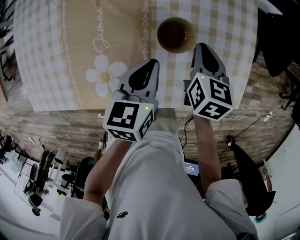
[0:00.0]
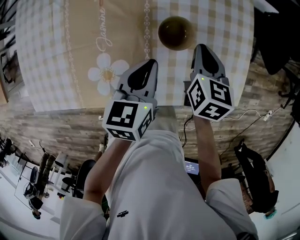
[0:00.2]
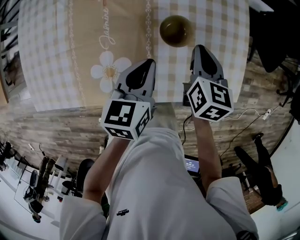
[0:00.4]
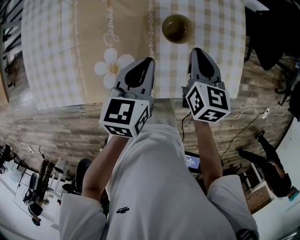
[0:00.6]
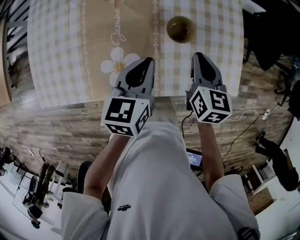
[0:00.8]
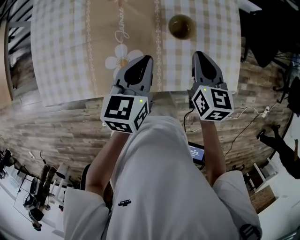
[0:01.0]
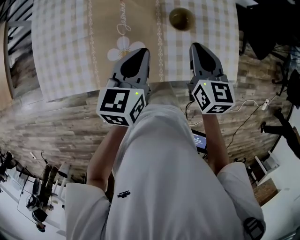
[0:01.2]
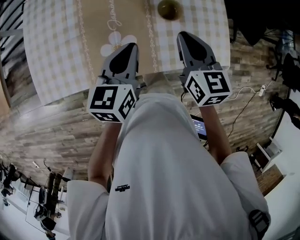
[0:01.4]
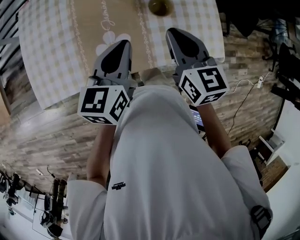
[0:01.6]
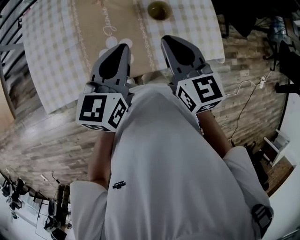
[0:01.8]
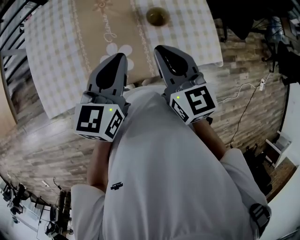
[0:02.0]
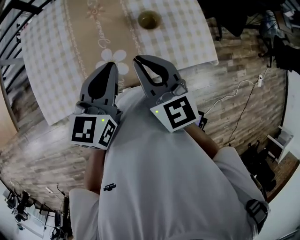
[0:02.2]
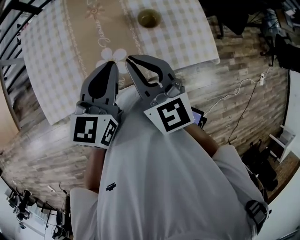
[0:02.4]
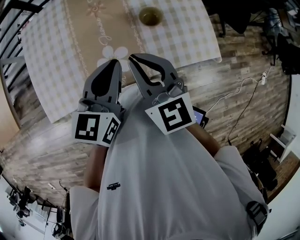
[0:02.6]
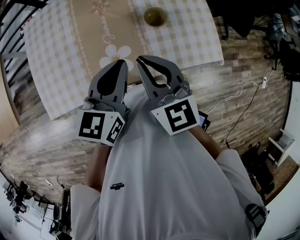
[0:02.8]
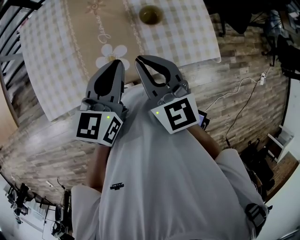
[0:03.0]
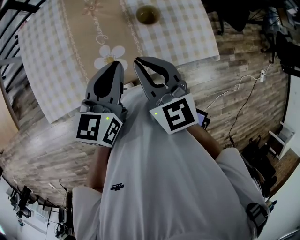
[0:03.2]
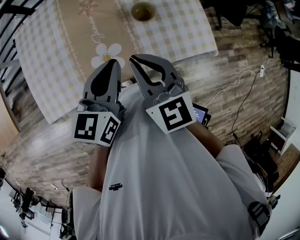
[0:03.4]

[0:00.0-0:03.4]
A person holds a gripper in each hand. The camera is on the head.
0:00.0 to 0:01.6: Both grippers travel together upward, backward and to the left, some 30 cm. The right gripper swivels approximately 20 degrees.
0:01.6 to 0:03.4: The right gripper travels backward and to the left by some 10 cm, while the left gripper changes place by some 5 cm.

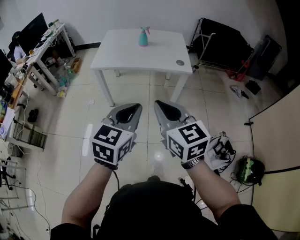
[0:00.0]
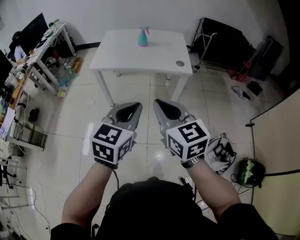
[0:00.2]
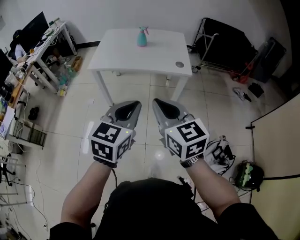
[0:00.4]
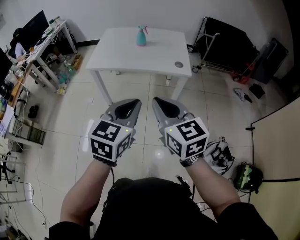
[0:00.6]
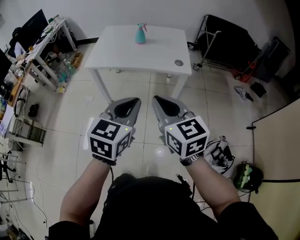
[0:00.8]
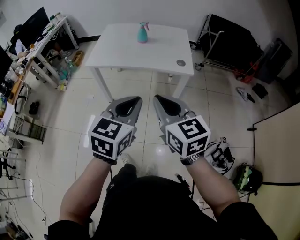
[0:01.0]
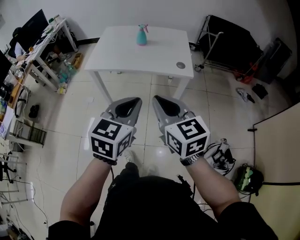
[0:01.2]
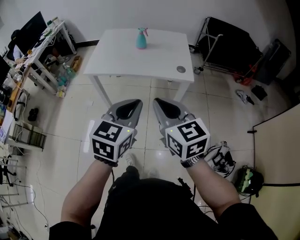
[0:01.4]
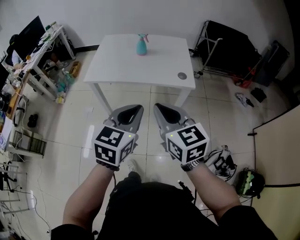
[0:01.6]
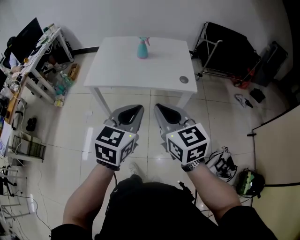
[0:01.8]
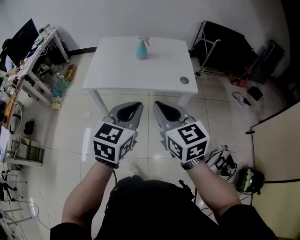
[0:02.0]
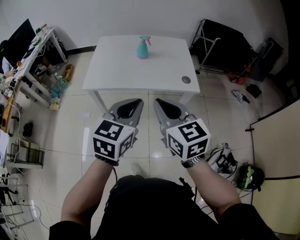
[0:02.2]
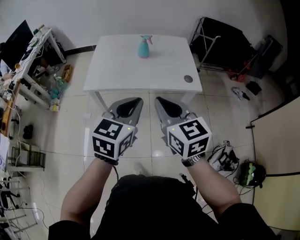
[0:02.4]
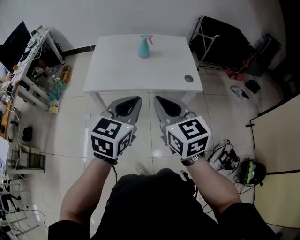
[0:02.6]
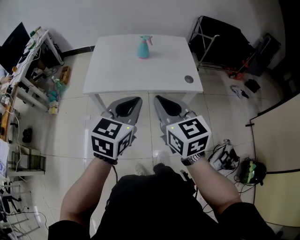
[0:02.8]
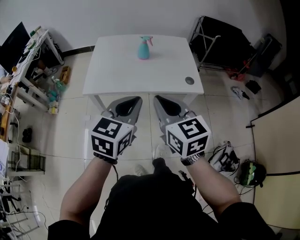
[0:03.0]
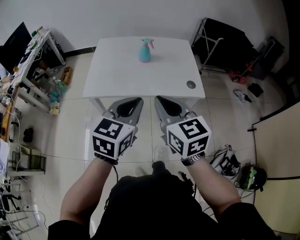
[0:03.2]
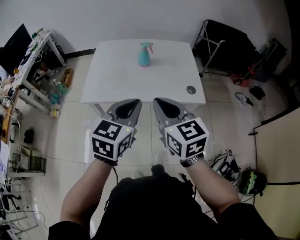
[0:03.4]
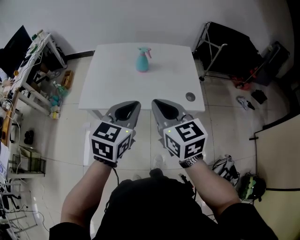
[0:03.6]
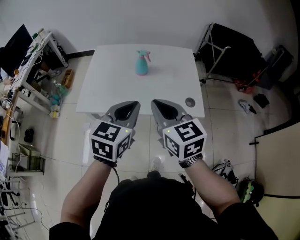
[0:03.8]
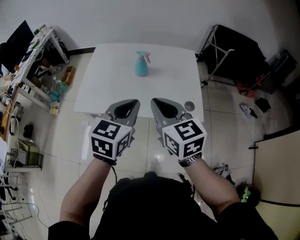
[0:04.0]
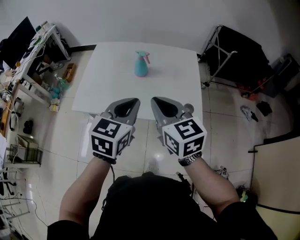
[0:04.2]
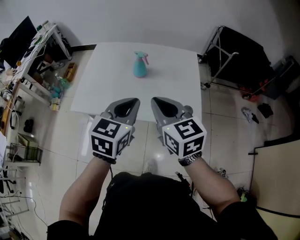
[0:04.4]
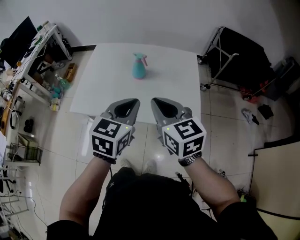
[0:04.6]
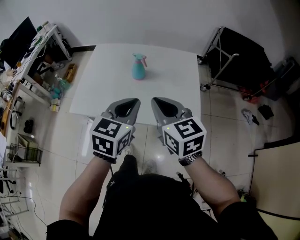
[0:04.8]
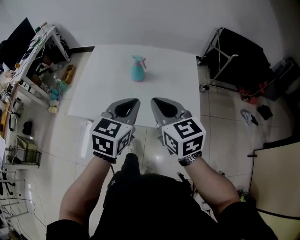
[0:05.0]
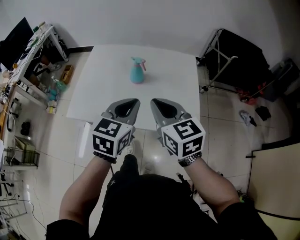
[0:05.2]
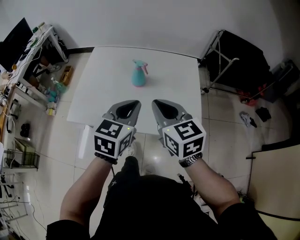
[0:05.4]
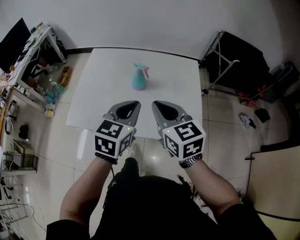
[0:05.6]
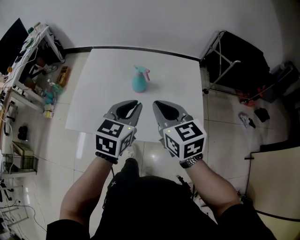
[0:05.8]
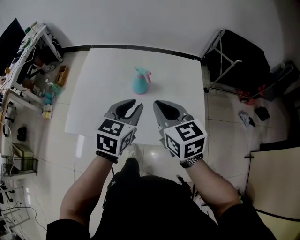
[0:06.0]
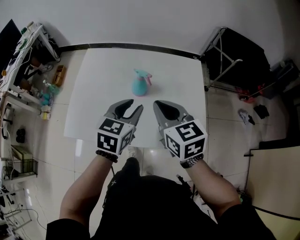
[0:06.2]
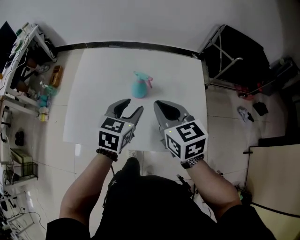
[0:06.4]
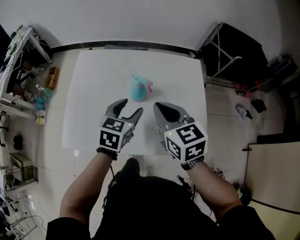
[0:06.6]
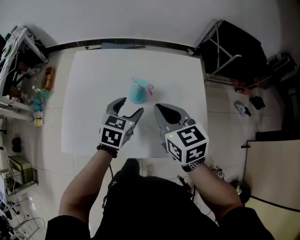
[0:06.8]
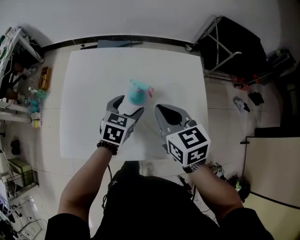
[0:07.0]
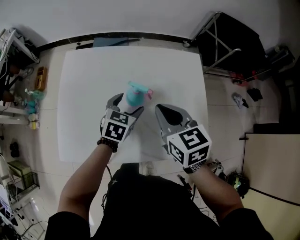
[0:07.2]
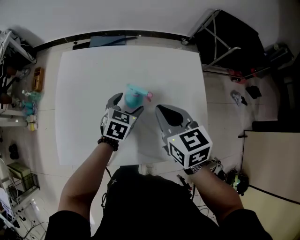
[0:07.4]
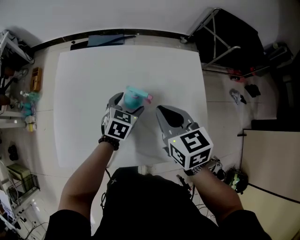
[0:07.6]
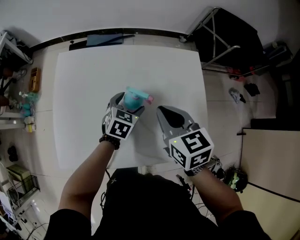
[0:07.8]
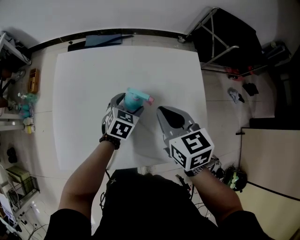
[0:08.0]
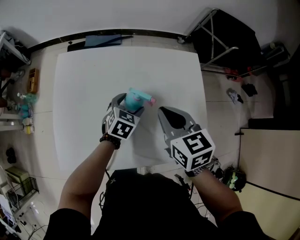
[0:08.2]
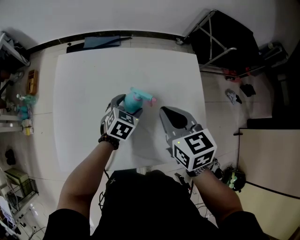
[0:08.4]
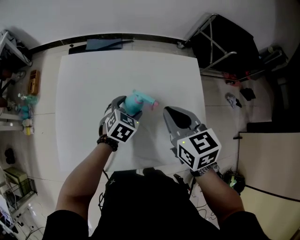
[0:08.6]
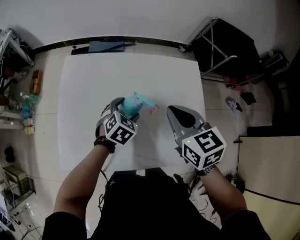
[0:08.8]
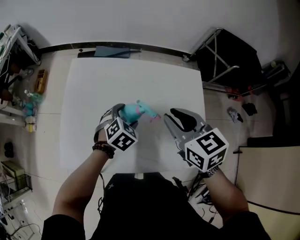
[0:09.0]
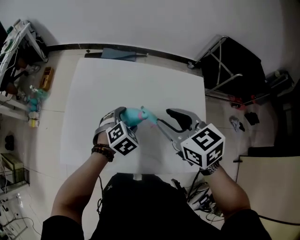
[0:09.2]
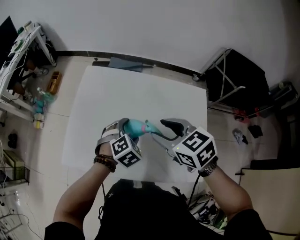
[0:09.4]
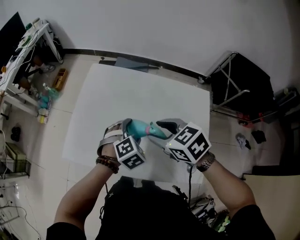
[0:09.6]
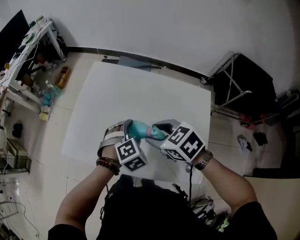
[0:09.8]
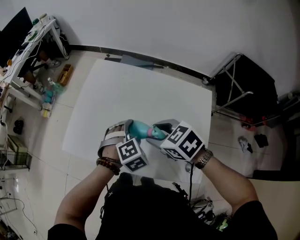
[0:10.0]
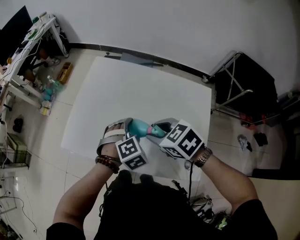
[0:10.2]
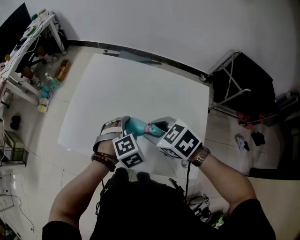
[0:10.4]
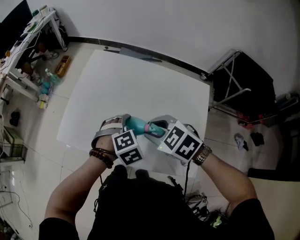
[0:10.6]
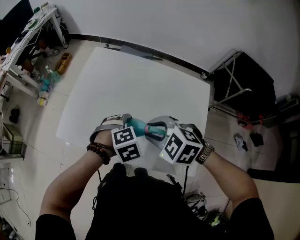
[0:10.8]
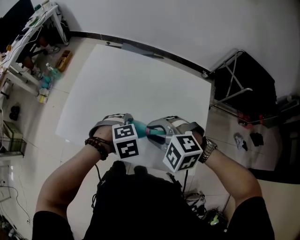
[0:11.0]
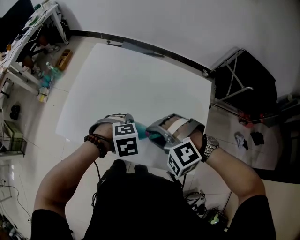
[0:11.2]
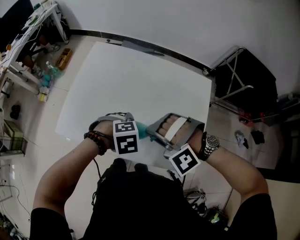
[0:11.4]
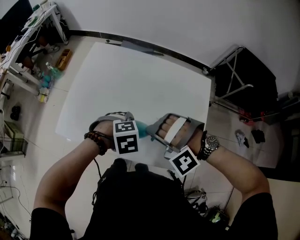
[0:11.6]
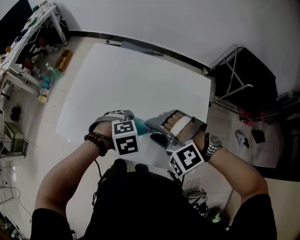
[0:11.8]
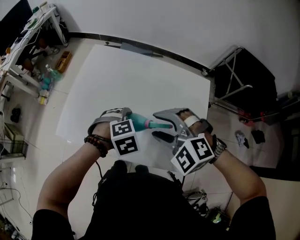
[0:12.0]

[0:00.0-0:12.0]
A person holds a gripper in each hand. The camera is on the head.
0:00.0 to 0:01.6: Both grippers move forward, roughly 15 cm.
0:01.6 to 0:03.0: Both grippers move forward and to the left, about 15 cm.
0:03.0 to 0:04.4: The grippers both shift forward and to the right by some 20 cm.
0:04.4 to 0:06.0: The two grippers go approximately 10 cm forward.
0:06.0 to 0:07.6: The right gripper shifts approximately 10 cm forward and downward; the left gripper goes some 25 cm downward and forward, and opens.
0:07.6 to 0:09.0: The left gripper rotates about 20 degrees. Meanwhile the right gripper heads upward, covering about 5 cm.
0:09.0 to 0:10.4: The left gripper shifts by some 10 cm, and changes its angle by approximately 20 degrees. Meanwhile the right gripper moves downward, approximately 5 cm, and rotates roughly 40 degrees.
0:10.4 to 0:12.0: The right gripper ends up about 5 cm from where it was, rotates around the line of its fingers by some 50 degrees, counterclockwise from behind, and opens up.

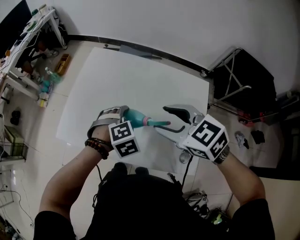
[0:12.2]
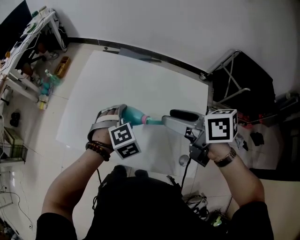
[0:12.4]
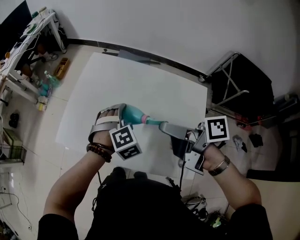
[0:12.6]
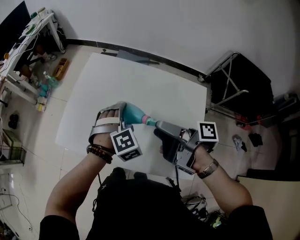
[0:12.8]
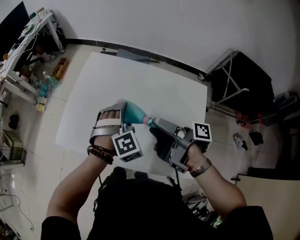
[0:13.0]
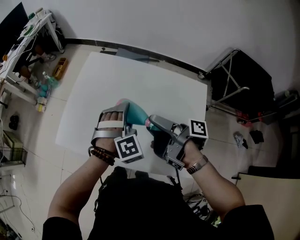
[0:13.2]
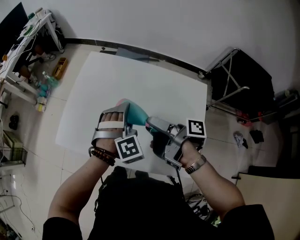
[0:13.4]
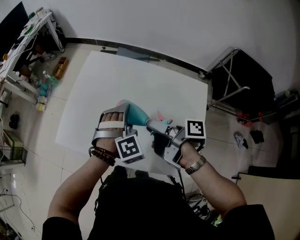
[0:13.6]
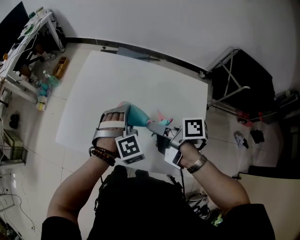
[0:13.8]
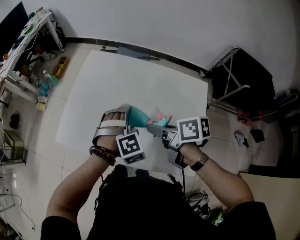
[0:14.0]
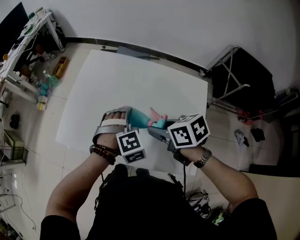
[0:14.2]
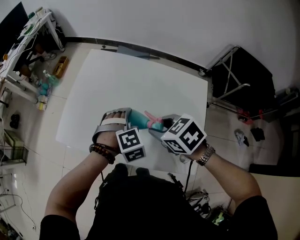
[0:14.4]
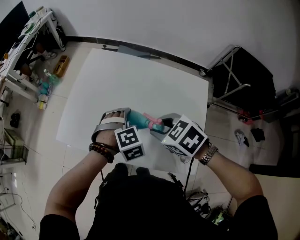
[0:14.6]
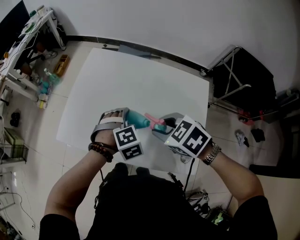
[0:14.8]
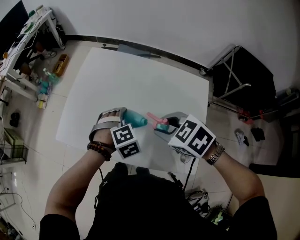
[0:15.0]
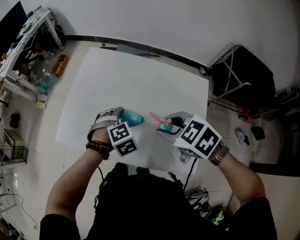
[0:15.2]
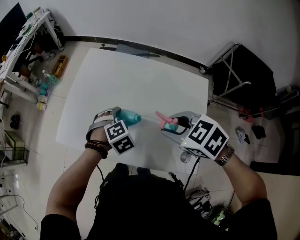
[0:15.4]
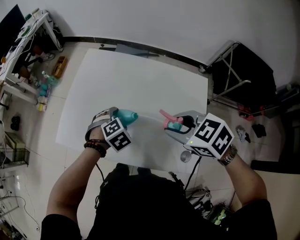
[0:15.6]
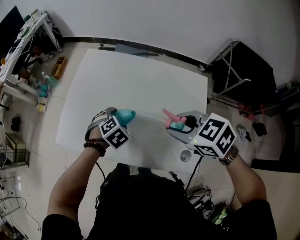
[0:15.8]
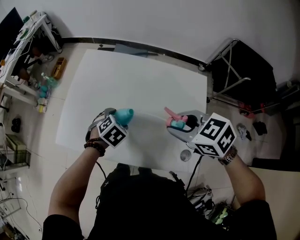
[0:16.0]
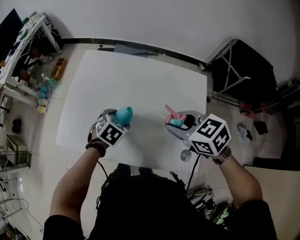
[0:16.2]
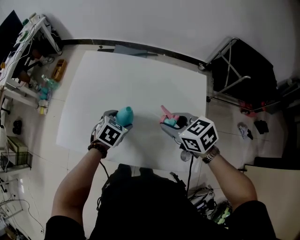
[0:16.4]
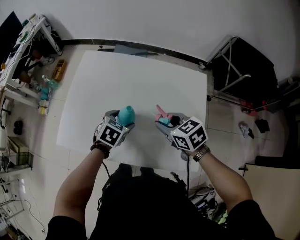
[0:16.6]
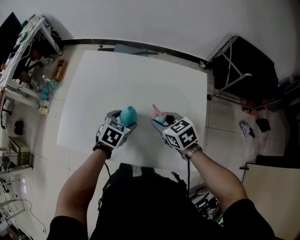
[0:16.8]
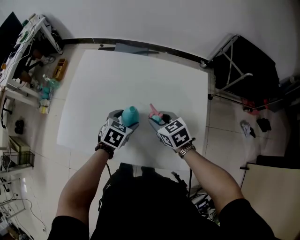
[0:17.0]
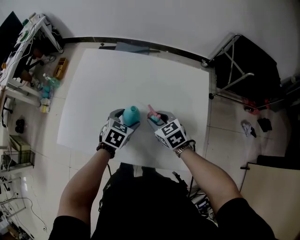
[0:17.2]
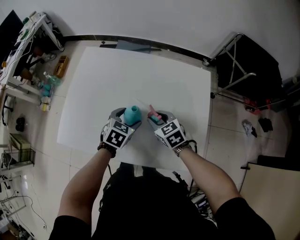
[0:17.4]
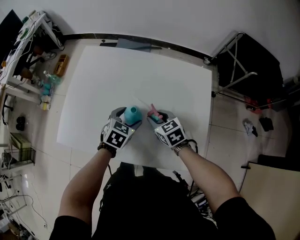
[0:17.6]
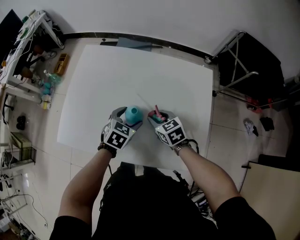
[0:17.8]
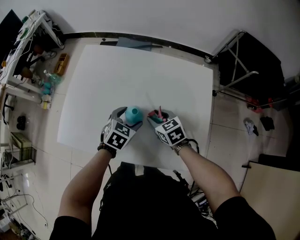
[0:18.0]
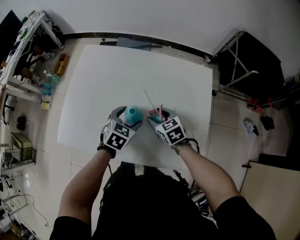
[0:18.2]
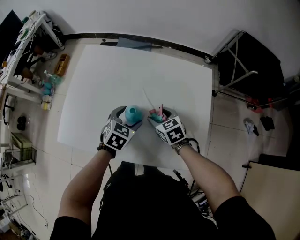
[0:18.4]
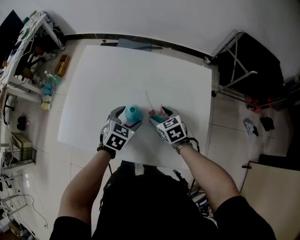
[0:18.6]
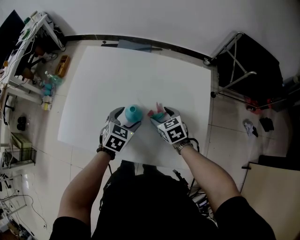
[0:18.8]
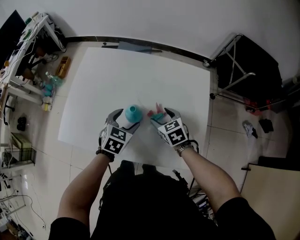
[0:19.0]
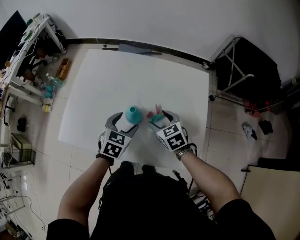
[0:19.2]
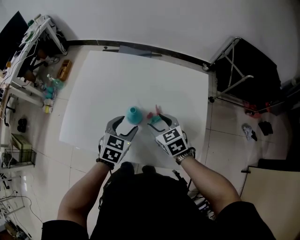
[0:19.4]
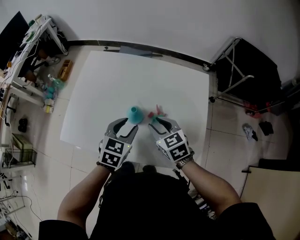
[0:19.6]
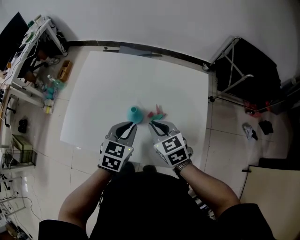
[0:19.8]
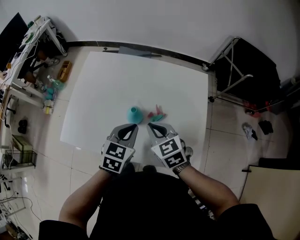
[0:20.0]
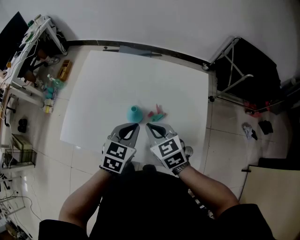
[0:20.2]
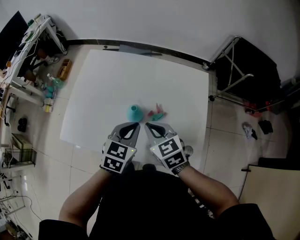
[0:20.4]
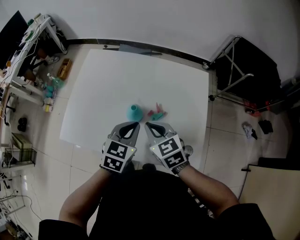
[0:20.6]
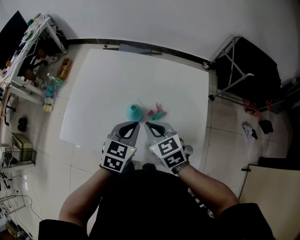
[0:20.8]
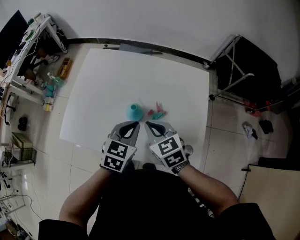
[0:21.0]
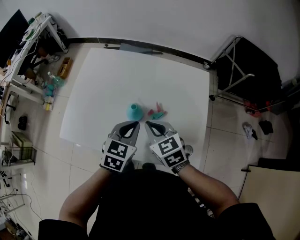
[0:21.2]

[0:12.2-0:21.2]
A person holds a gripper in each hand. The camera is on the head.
0:12.2 to 0:13.8: The right gripper shifts roughly 10 cm downward, rolls clockwise, seen from behind, by some 80 degrees, and closes its fingers. Meanwhile the left gripper rotates about 20 degrees.
0:13.8 to 0:15.2: The right gripper rolls counterclockwise, seen from behind, by some 80 degrees, while the left gripper is displaced downward by about 5 cm, and changes its angle by approximately 20 degrees.
0:15.2 to 0:16.6: The left gripper swivels some 40 degrees. Meanwhile the right gripper heads downward, covering roughly 5 cm, and turns by approximately 30 degrees.
0:16.6 to 0:18.2: The right gripper heads downward, covering some 10 cm.
0:18.2 to 0:19.8: The two grippers go roughly 10 cm upward and backward. The left gripper closes up; the right gripper closes up.
0:19.8 to 0:21.2: The grippers stay close to where they were, moving slightly.
